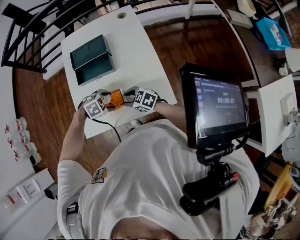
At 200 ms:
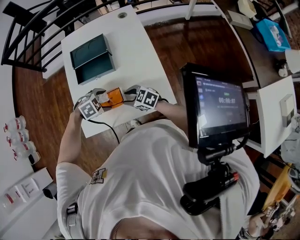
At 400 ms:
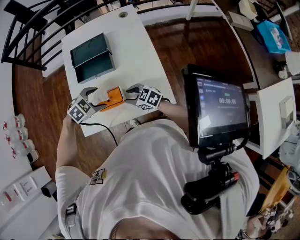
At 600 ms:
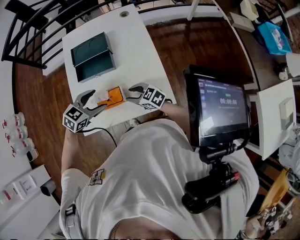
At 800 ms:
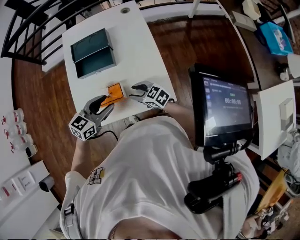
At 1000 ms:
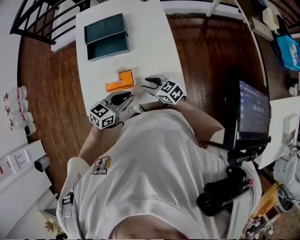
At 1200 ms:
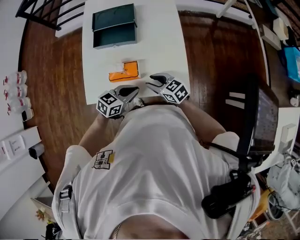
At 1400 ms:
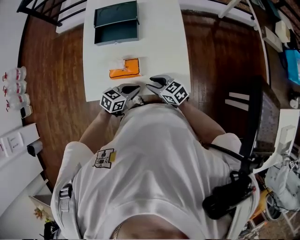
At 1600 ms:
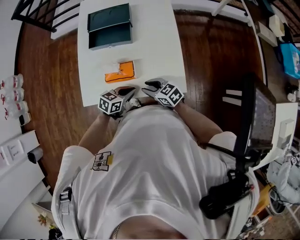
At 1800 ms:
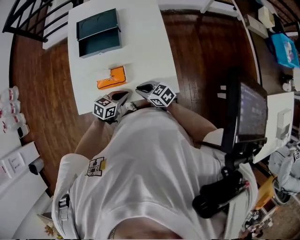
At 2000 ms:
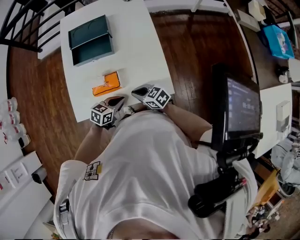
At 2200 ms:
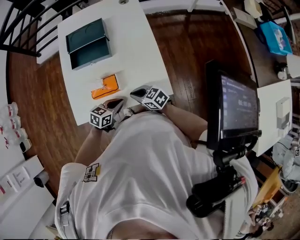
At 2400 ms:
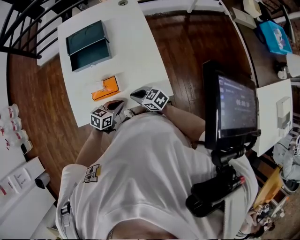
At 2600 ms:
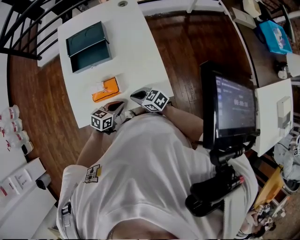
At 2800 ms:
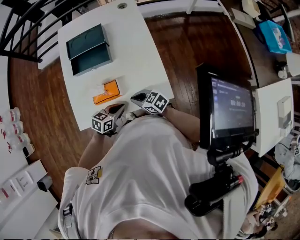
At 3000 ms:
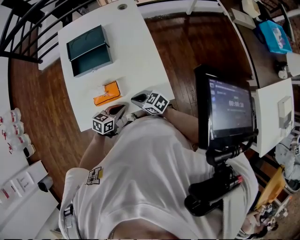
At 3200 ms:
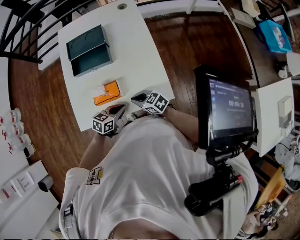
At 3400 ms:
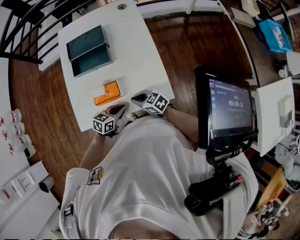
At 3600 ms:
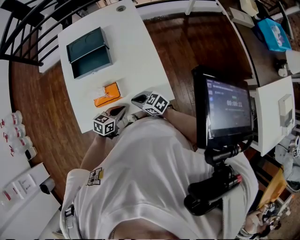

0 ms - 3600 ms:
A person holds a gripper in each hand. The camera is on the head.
0 ms - 1800 ms: The left gripper travels upward and back again, approximately 15 cm each way, angles its fingers upward, by approximately 40 degrees, and closes. Meanwhile the right gripper ends up approximately 5 cm from where it was, and closes up.
1800 ms - 3600 ms: Neither gripper changes place.

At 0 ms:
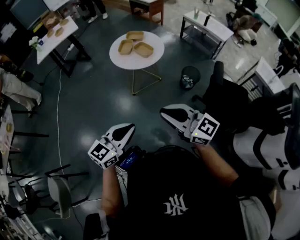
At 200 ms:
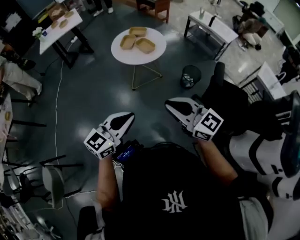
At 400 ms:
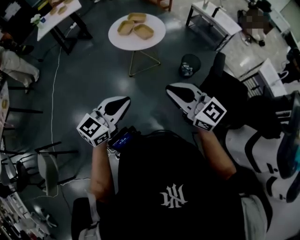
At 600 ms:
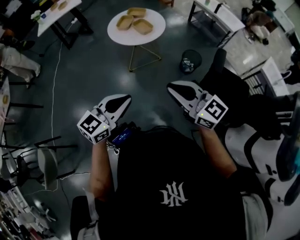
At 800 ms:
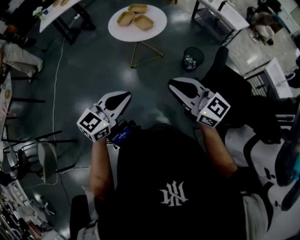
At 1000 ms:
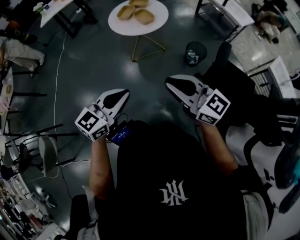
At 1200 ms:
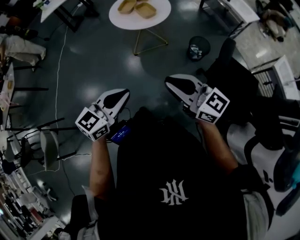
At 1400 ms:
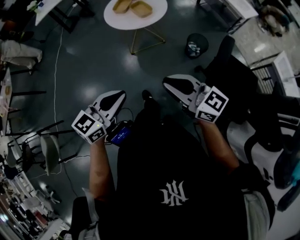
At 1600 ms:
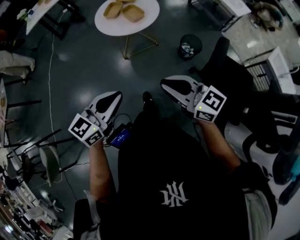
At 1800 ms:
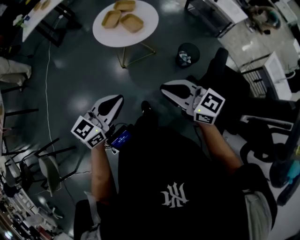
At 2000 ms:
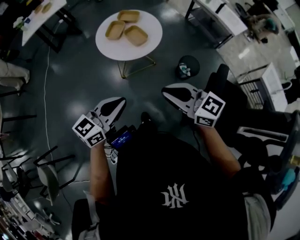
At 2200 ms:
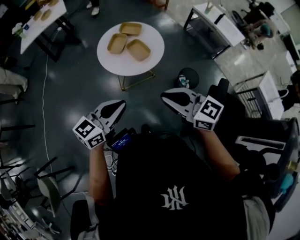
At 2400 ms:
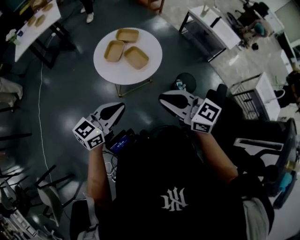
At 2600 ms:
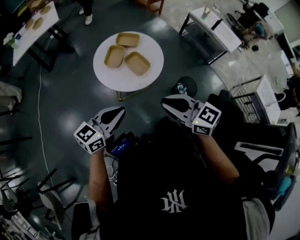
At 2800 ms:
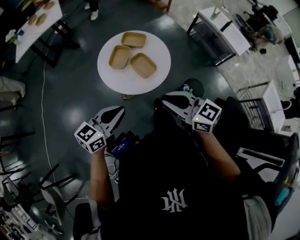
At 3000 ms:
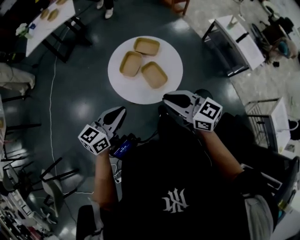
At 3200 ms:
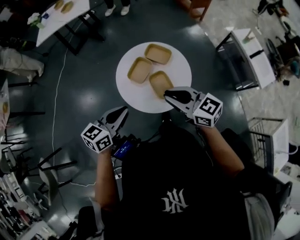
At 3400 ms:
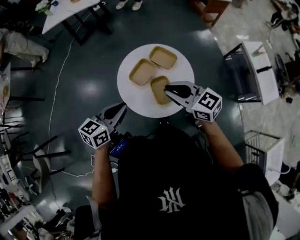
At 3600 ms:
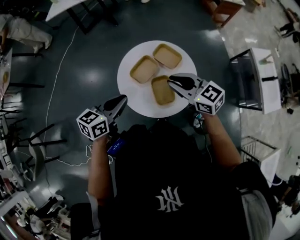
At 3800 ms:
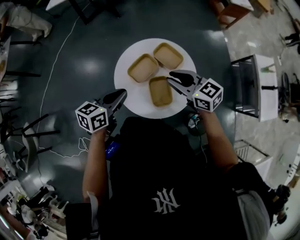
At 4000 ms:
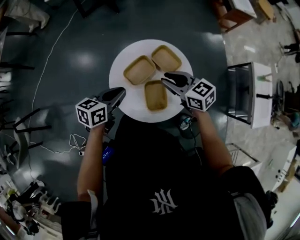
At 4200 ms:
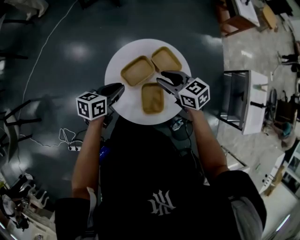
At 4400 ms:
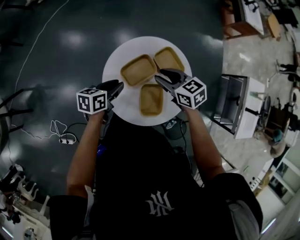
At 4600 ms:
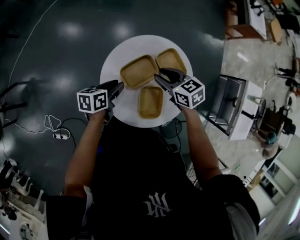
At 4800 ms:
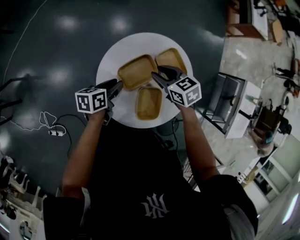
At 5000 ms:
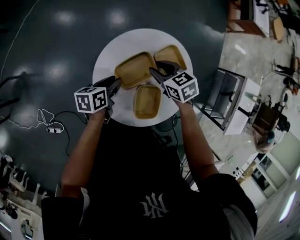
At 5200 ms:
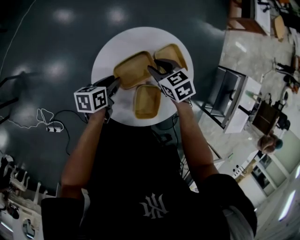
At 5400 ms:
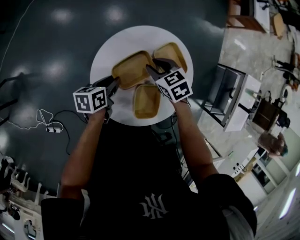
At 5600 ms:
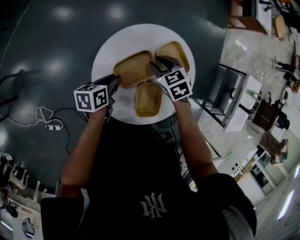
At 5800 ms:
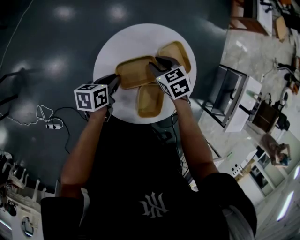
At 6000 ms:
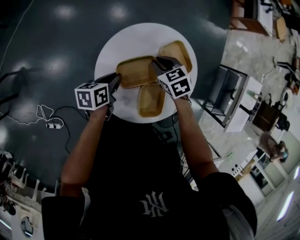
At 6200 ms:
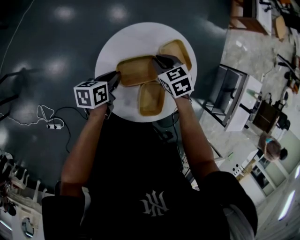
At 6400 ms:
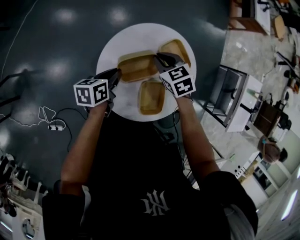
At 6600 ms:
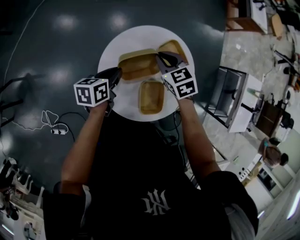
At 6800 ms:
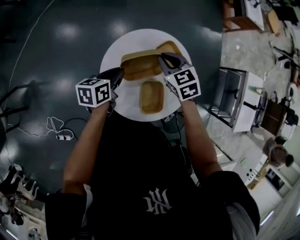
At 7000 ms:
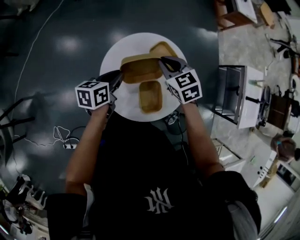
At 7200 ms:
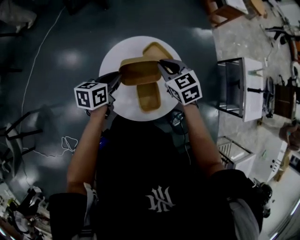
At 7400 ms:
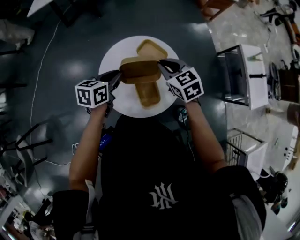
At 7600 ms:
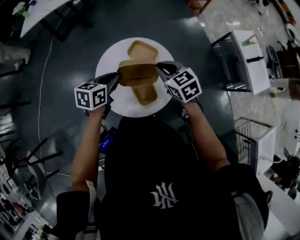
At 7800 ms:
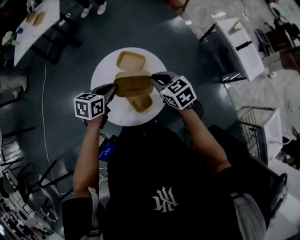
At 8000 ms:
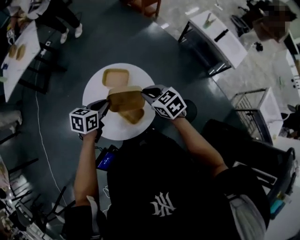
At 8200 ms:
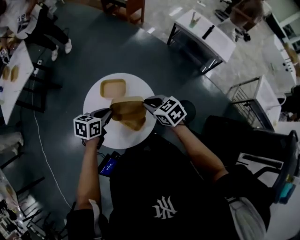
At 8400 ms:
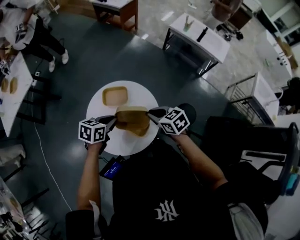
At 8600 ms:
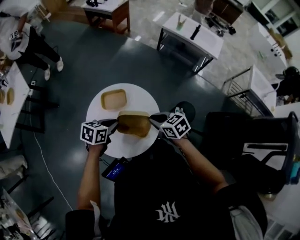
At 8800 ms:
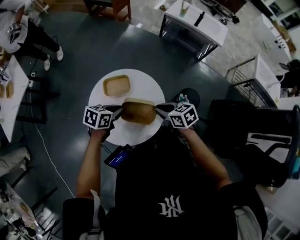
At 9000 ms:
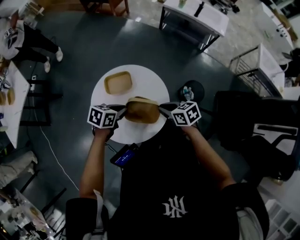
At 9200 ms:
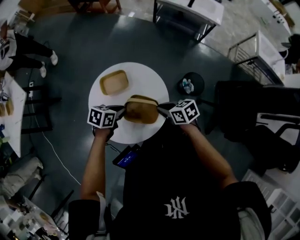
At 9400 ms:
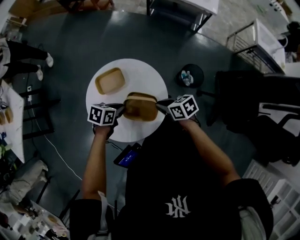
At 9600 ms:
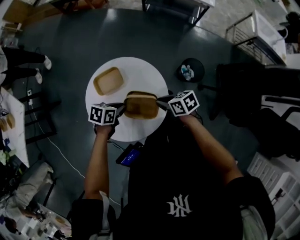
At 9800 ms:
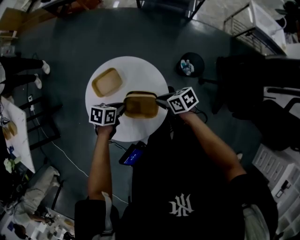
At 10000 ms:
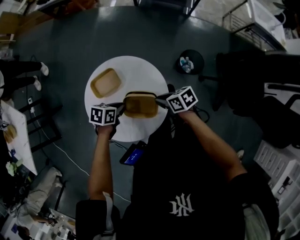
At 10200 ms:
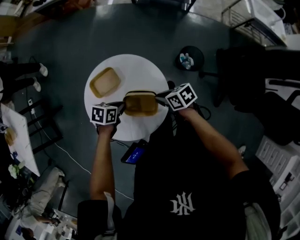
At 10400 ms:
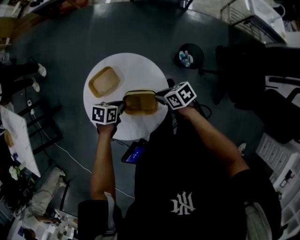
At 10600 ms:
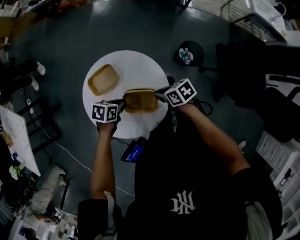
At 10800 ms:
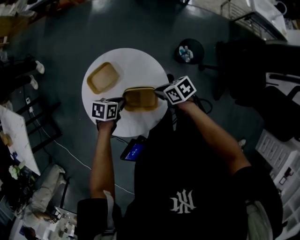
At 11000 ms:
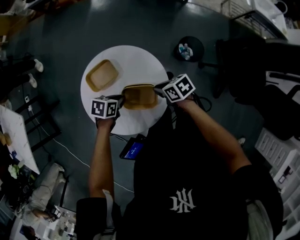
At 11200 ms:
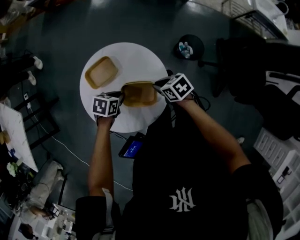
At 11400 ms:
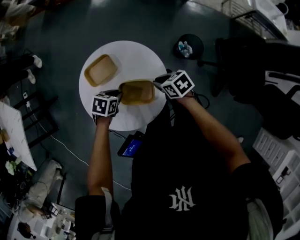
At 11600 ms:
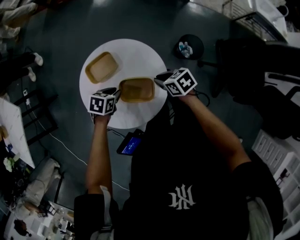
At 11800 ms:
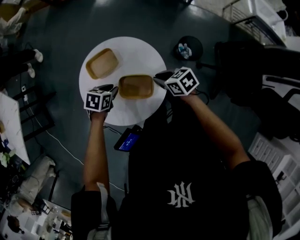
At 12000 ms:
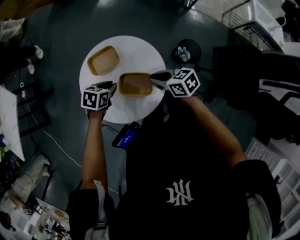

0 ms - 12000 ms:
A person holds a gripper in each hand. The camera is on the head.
0 ms - 1600 ms: The right gripper is displaced to the right, forward and downward by approximately 15 cm, while the left gripper shifts roughly 10 cm to the right and forward.
1600 ms - 3000 ms: Both grippers travel together forward, approximately 40 cm.
3000 ms - 4400 ms: The right gripper shifts by about 35 cm, turns by roughly 40 degrees, and opens, while the left gripper moves approximately 30 cm, changes its angle by approximately 50 degrees, and opens its fingers.
4400 ms - 6000 ms: Both grippers move downward, roughly 10 cm. The right gripper swivels about 20 degrees.
6000 ms - 7600 ms: The right gripper heads upward, to the right and backward, covering some 25 cm, and swivels about 30 degrees; the left gripper moves upward and to the right, some 20 cm, and rotates around the line of its fingers by approximately 40 degrees, clockwise from behind.
7600 ms - 9000 ms: The right gripper shifts by roughly 15 cm, and rolls clockwise, seen from behind, by roughly 50 degrees. Meanwhile the left gripper is displaced downward by roughly 5 cm, and swivels some 60 degrees.
9000 ms - 10400 ms: The grippers both shift downward by about 10 cm.
10400 ms - 12000 ms: The right gripper moves upward, approximately 5 cm.

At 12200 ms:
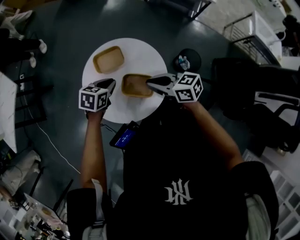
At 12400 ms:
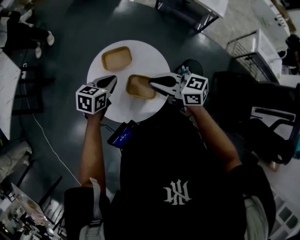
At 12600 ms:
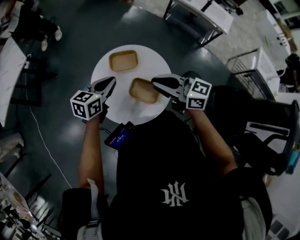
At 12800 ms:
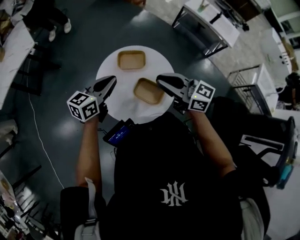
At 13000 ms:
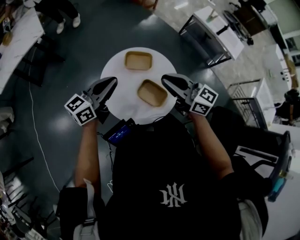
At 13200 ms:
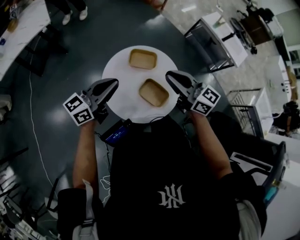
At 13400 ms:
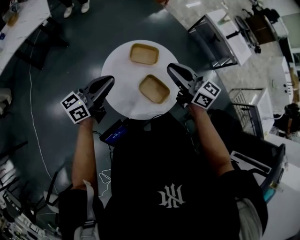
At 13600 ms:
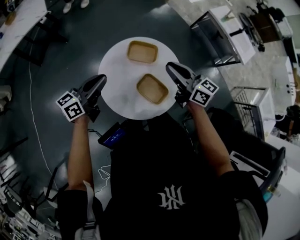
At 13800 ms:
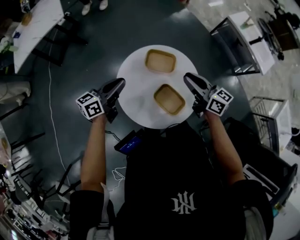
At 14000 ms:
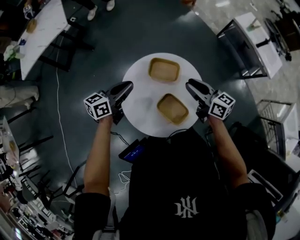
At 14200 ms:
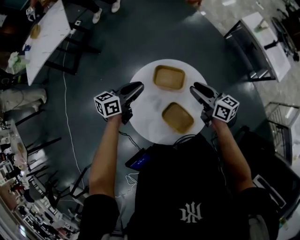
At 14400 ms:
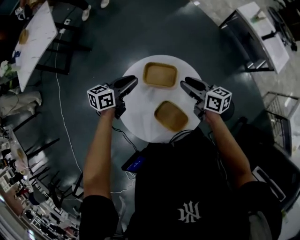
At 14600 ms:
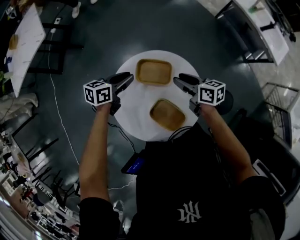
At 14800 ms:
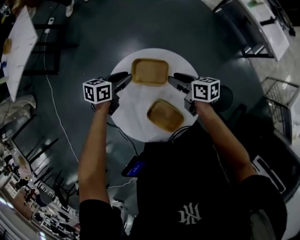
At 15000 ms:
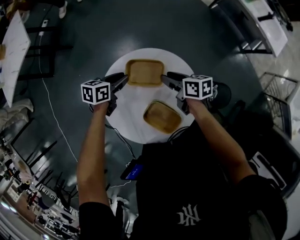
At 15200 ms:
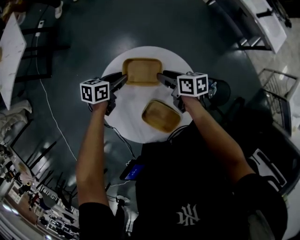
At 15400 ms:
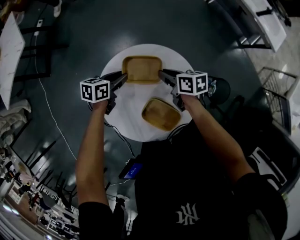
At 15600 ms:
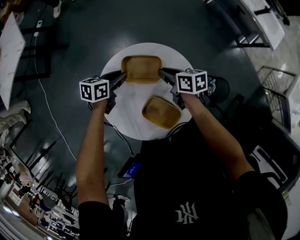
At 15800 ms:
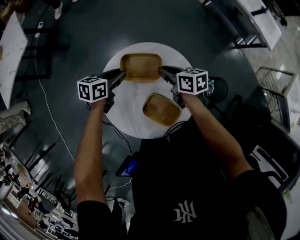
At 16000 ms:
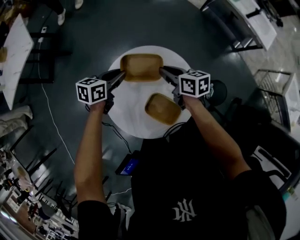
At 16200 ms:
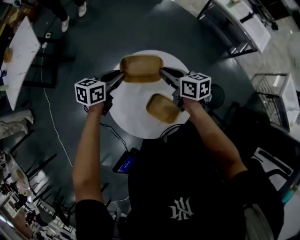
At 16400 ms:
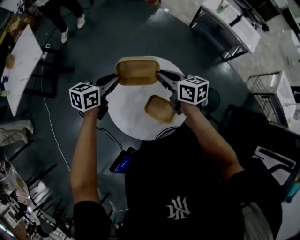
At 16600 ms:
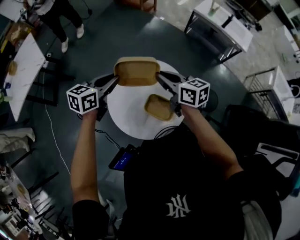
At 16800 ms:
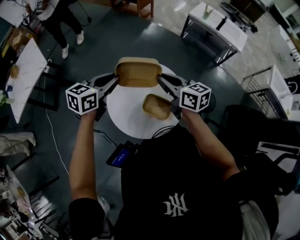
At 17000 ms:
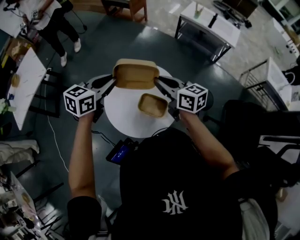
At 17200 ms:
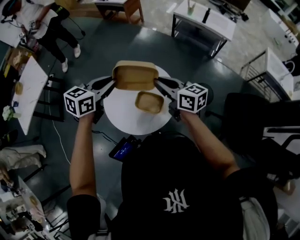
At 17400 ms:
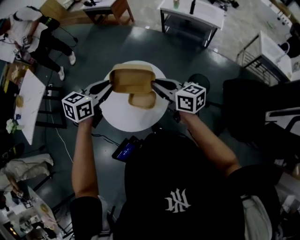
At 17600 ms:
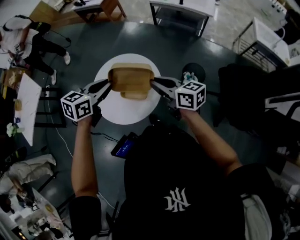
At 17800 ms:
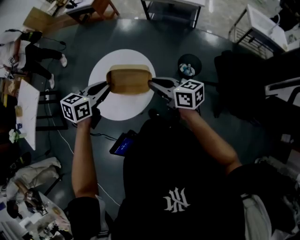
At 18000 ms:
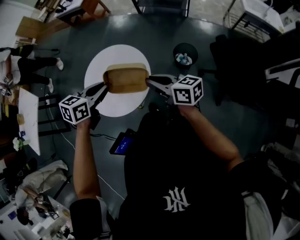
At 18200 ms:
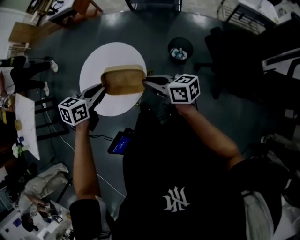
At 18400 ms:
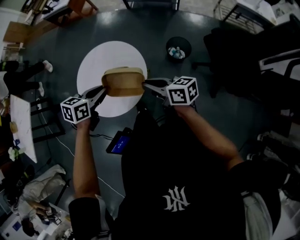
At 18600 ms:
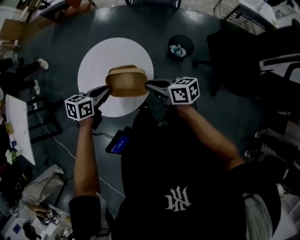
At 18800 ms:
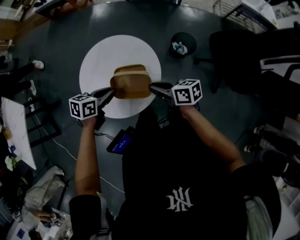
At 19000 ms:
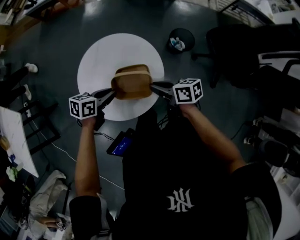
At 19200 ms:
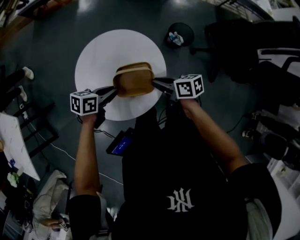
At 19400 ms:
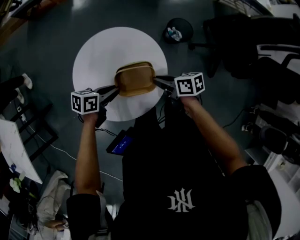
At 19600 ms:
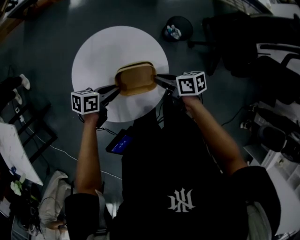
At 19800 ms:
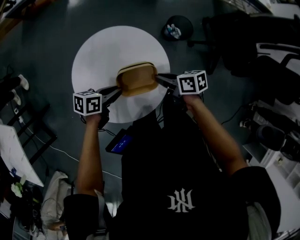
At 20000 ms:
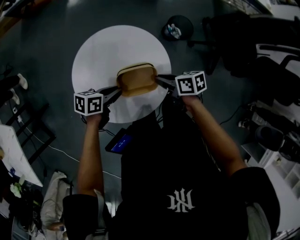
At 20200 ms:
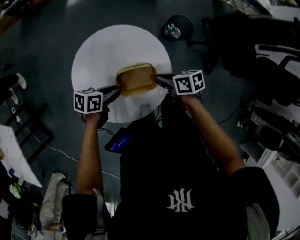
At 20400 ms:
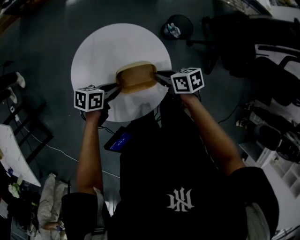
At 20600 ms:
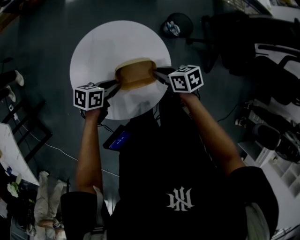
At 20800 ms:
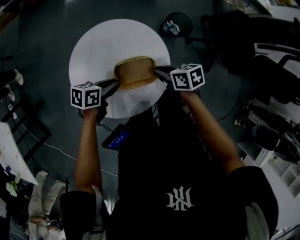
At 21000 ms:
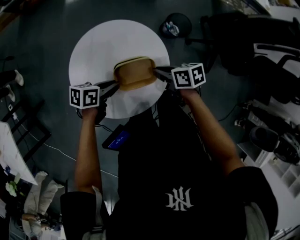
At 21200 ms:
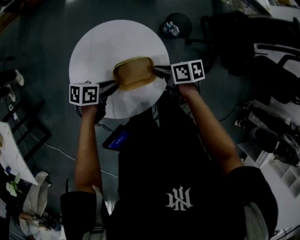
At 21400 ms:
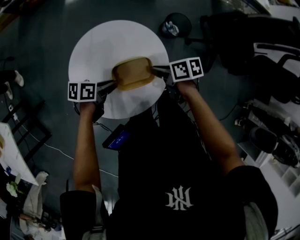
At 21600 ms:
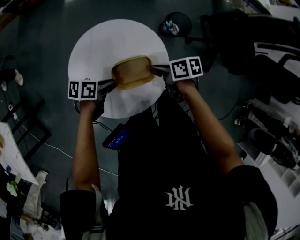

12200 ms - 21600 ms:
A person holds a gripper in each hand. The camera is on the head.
12200 ms - 13800 ms: The right gripper shifts roughly 10 cm forward, and moves approximately 15 cm upward and comes back. Meanwhile the left gripper travels to the left and upward by about 15 cm, and angles its fingers upward, by some 40 degrees.
13800 ms - 15400 ms: The right gripper goes some 20 cm downward, swivels about 40 degrees, and opens and closes again; the left gripper is displaced downward, forward and to the right by approximately 25 cm, tilts its fingers approximately 30 degrees downward, and opens.
15400 ms - 17000 ms: Both grippers move upward, some 30 cm. The left gripper rotates some 40 degrees. Meanwhile the right gripper turns by about 40 degrees.
17000 ms - 18400 ms: The right gripper moves backward, to the right and downward, about 25 cm; the left gripper is displaced to the right, backward and downward by roughly 20 cm, and turns by approximately 20 degrees.
18400 ms - 20000 ms: Both grippers travel together downward, about 15 cm. The right gripper changes its angle by roughly 30 degrees. Meanwhile the left gripper rotates approximately 30 degrees.
20000 ms - 21600 ms: The grippers make only small movements.